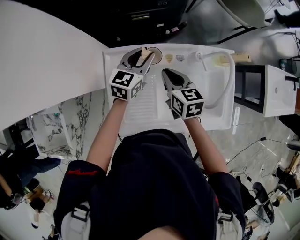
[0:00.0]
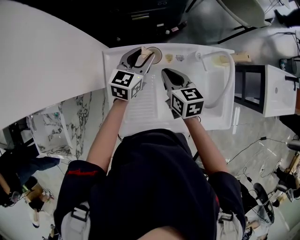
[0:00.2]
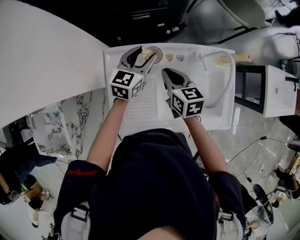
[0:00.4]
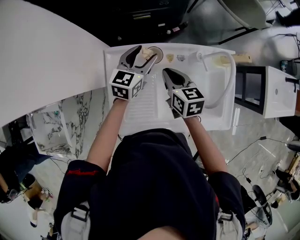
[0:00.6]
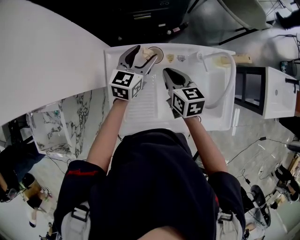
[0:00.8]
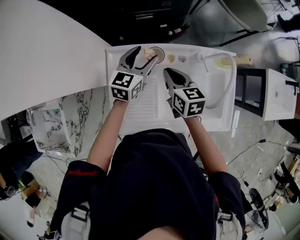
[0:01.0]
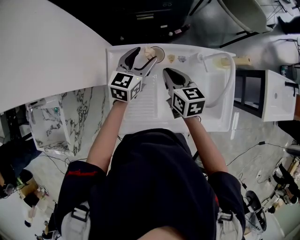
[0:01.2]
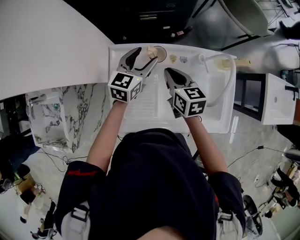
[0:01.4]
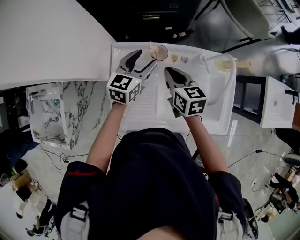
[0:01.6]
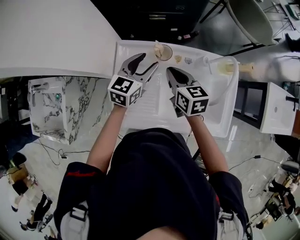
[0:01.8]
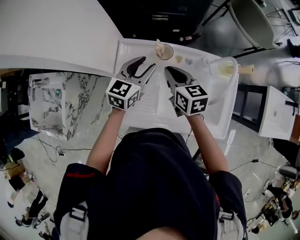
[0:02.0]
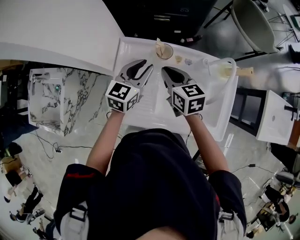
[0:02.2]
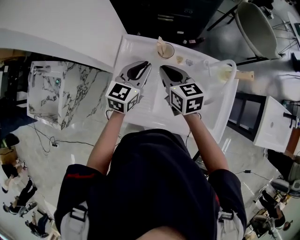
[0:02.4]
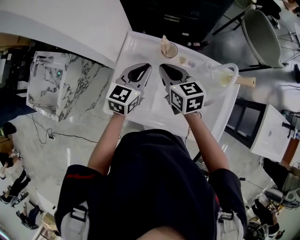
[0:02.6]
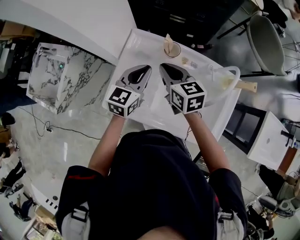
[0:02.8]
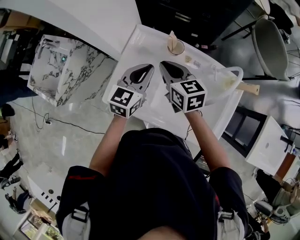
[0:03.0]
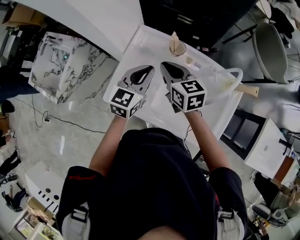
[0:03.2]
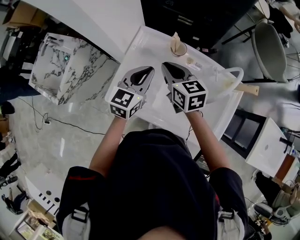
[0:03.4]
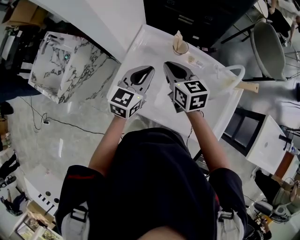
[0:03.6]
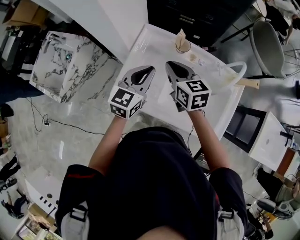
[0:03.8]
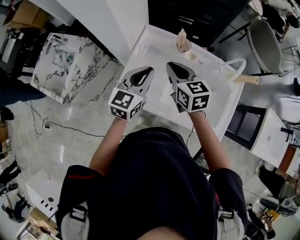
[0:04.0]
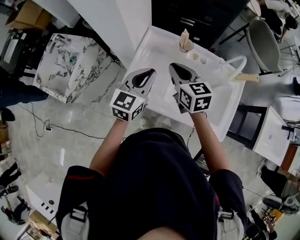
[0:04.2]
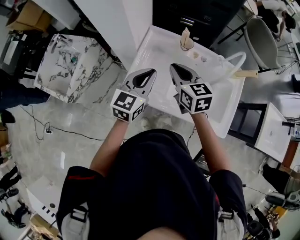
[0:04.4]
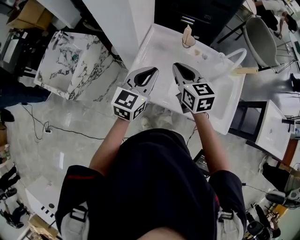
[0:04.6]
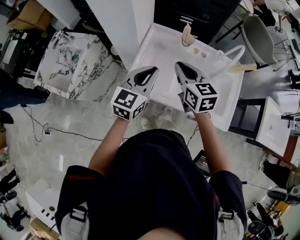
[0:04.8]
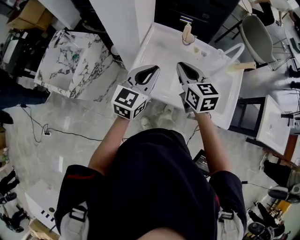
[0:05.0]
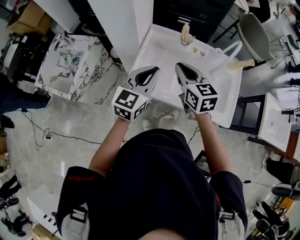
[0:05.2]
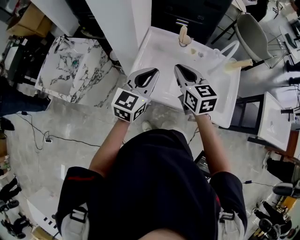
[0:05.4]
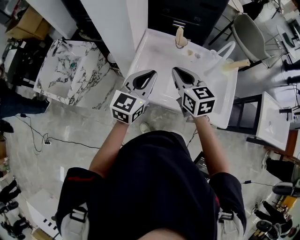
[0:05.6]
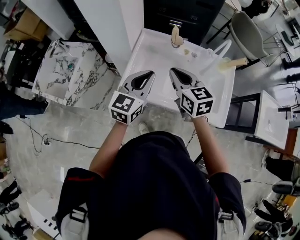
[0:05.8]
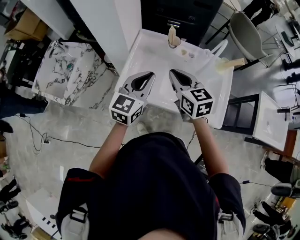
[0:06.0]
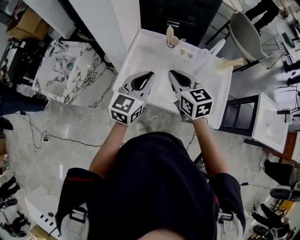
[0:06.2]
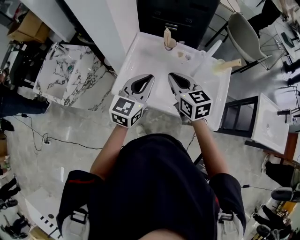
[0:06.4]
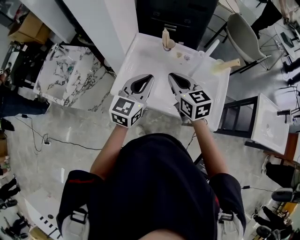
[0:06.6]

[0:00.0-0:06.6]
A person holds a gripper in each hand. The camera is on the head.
0.0 to 1.6 s: The left gripper changes place by roughly 5 cm, and opens its fingers.
1.6 to 3.2 s: The right gripper goes roughly 5 cm to the left, and turns by about 30 degrees, while the left gripper goes approximately 10 cm backward, rotates approximately 20 degrees, and closes.
3.2 to 5.0 s: The right gripper is displaced backward and upward by about 15 cm, while the left gripper moves backward, to the left and upward, about 20 cm.
5.0 to 6.6 s: The two grippers go roughly 5 cm to the right.

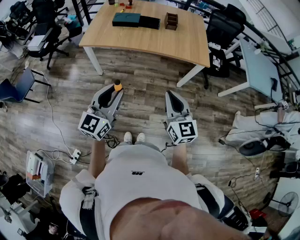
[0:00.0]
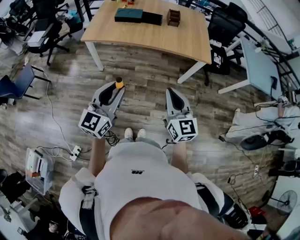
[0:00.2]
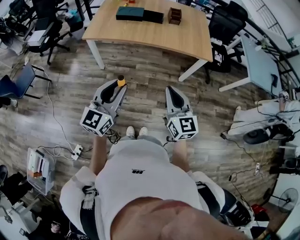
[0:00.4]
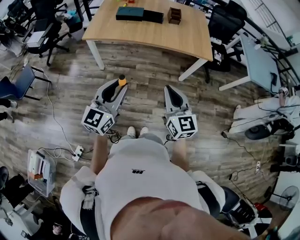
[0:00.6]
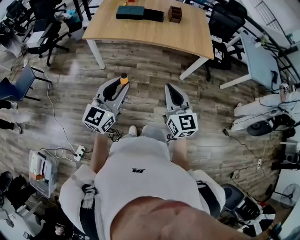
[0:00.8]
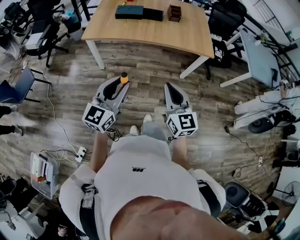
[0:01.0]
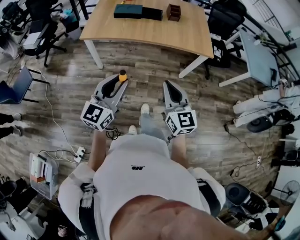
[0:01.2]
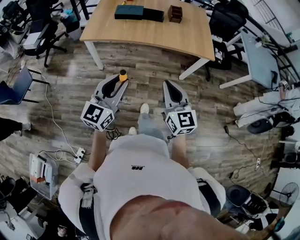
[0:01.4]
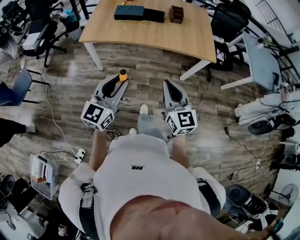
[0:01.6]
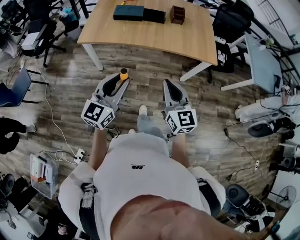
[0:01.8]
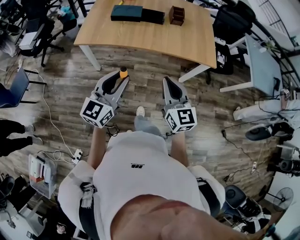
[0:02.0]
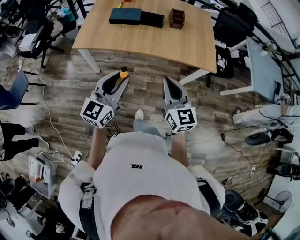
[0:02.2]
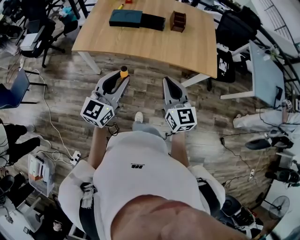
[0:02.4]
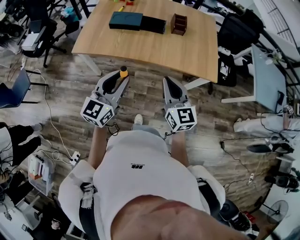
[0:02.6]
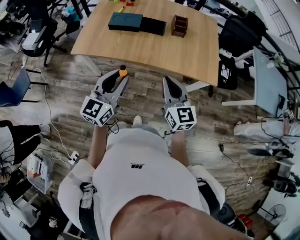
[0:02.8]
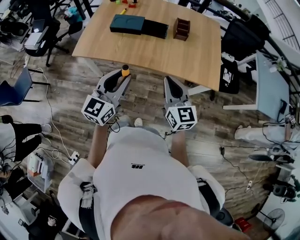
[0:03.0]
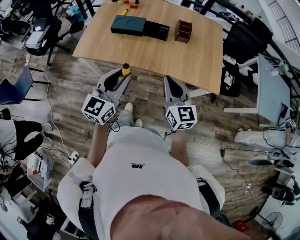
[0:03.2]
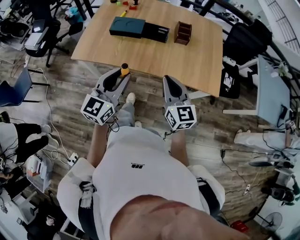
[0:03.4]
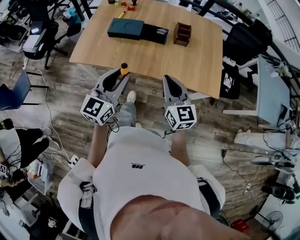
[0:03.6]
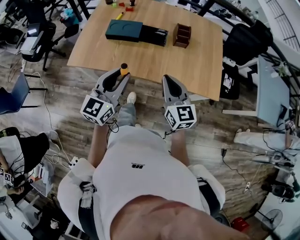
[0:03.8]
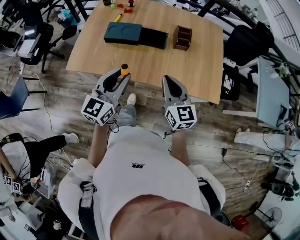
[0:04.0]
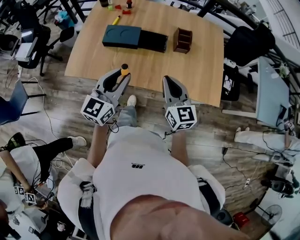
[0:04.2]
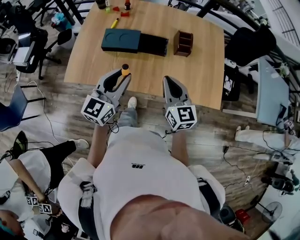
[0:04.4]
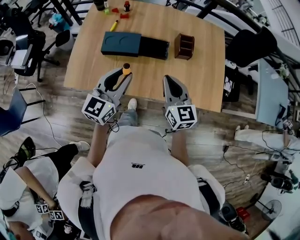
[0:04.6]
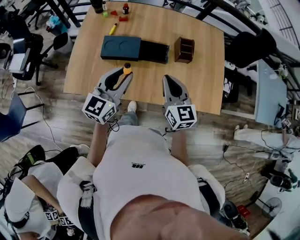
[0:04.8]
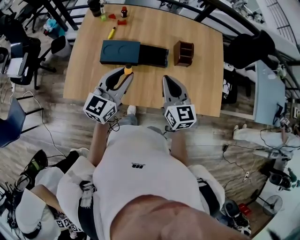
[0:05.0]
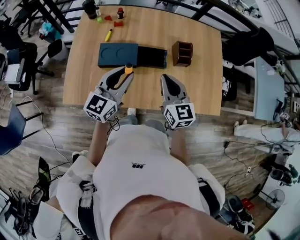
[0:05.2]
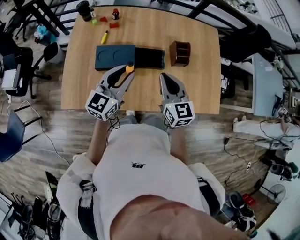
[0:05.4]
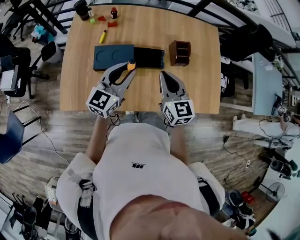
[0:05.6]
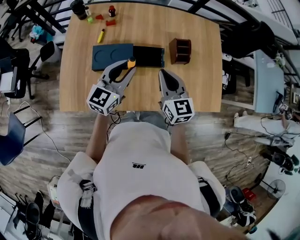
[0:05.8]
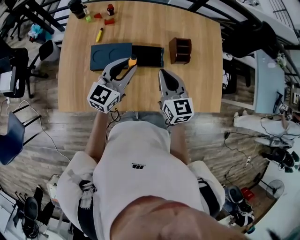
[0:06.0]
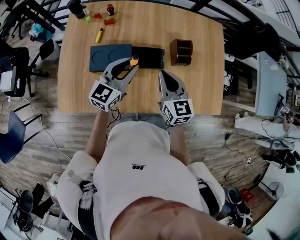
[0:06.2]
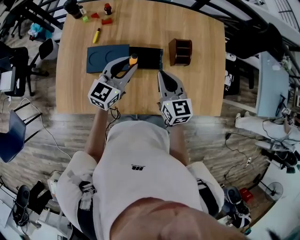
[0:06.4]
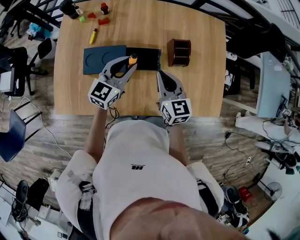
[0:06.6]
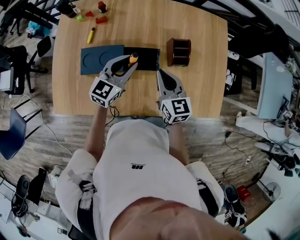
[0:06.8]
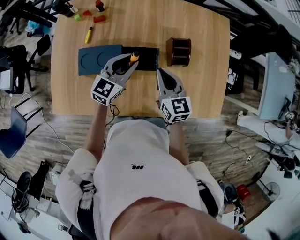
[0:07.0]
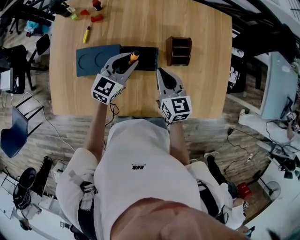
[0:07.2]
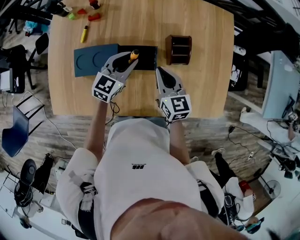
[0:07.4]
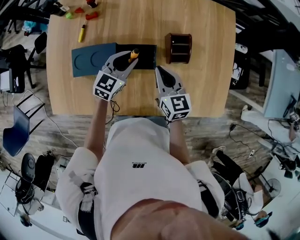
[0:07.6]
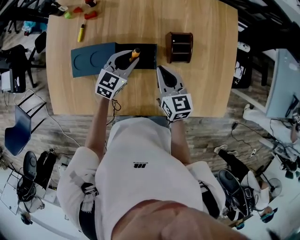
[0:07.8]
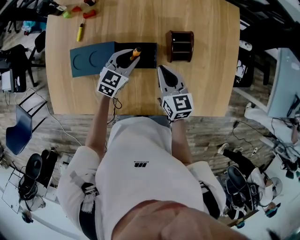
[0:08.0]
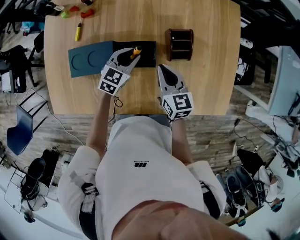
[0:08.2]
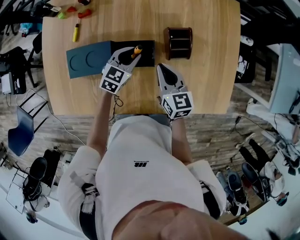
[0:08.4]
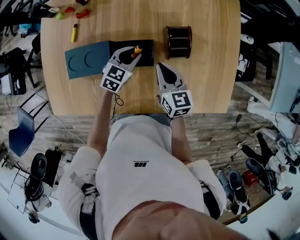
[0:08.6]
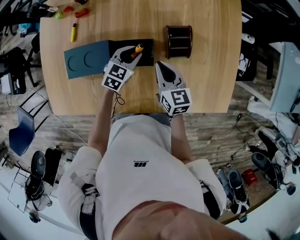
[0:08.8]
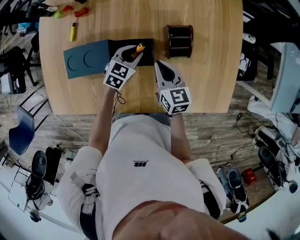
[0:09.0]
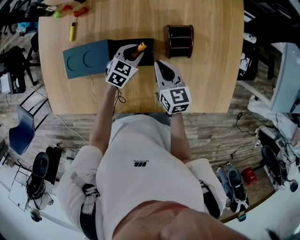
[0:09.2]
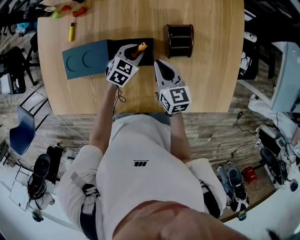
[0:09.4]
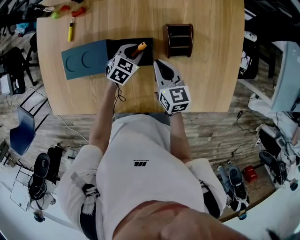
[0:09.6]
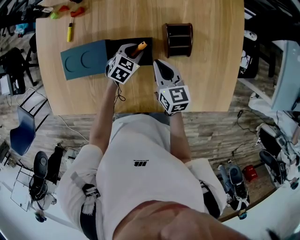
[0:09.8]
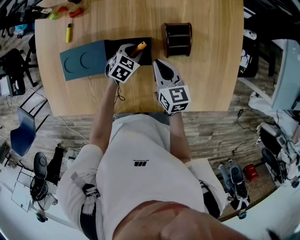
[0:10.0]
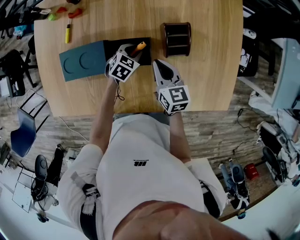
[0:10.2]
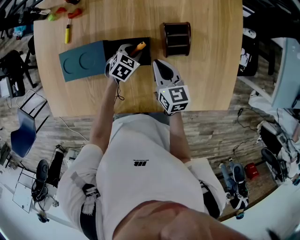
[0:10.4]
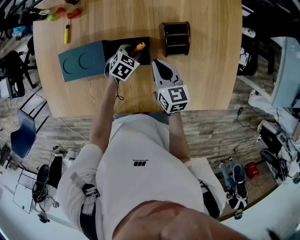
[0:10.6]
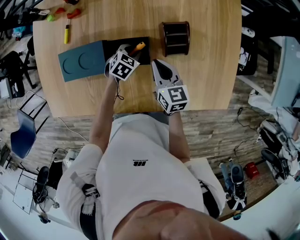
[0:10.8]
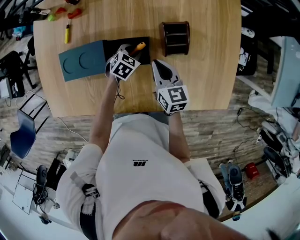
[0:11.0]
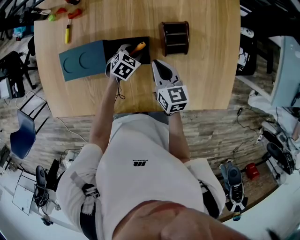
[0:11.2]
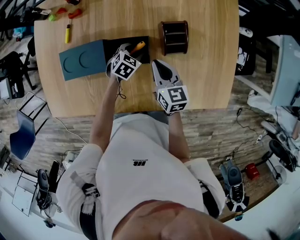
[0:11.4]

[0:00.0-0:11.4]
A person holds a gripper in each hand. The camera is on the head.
0.0 to 1.4 s: Both grippers move to the left, about 10 cm.
1.4 to 2.8 s: The two grippers go approximately 25 cm forward.
2.8 to 4.2 s: The grippers both shift forward by about 20 cm.
4.2 to 5.6 s: The left gripper goes roughly 25 cm forward. The right gripper moves forward and to the left, some 20 cm.
5.6 to 7.2 s: Both grippers move forward, downward and to the right, some 20 cm.
7.2 to 8.6 s: The right gripper travels downward by roughly 5 cm. Meanwhile the left gripper heads downward, covering roughly 15 cm.
8.6 to 10.0 s: The left gripper goes about 10 cm downward.
10.0 to 11.4 s: The grippers stay close to where they were, moving slightly.

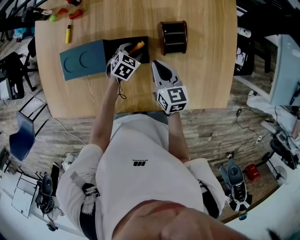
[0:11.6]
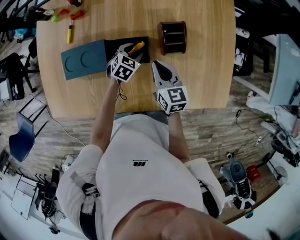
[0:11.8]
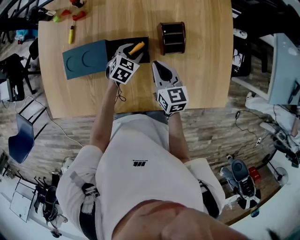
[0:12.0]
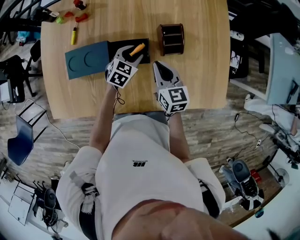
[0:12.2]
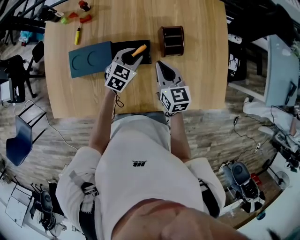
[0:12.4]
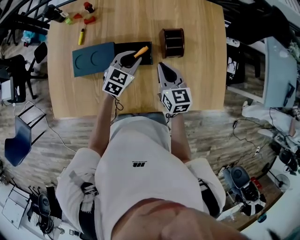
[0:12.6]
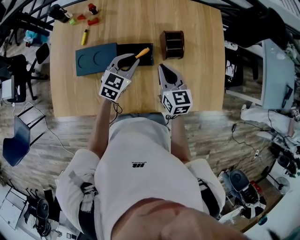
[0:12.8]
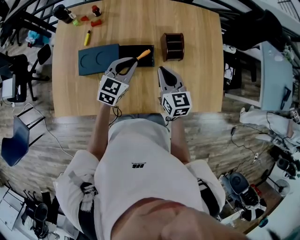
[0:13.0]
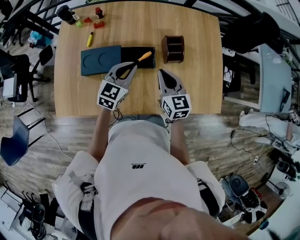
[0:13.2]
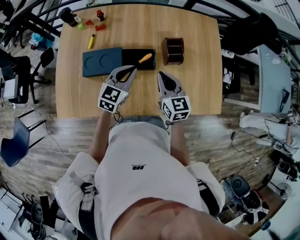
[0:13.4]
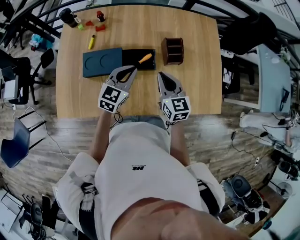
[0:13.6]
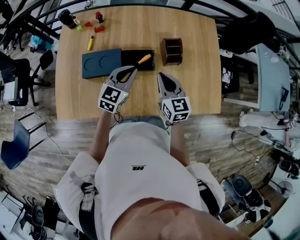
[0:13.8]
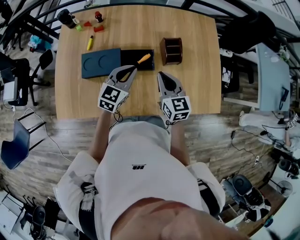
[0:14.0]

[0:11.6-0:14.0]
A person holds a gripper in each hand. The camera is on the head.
11.6 to 12.8 s: The left gripper travels upward by about 20 cm, turns by roughly 30 degrees, and closes its fingers. Meanwhile the right gripper moves upward, some 10 cm.
12.8 to 14.0 s: The left gripper is displaced upward and backward by about 5 cm, while the right gripper changes place by some 5 cm.

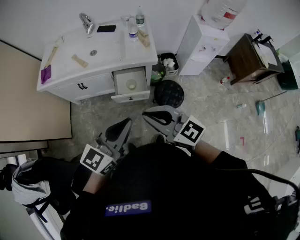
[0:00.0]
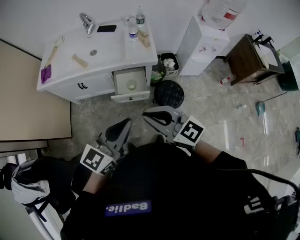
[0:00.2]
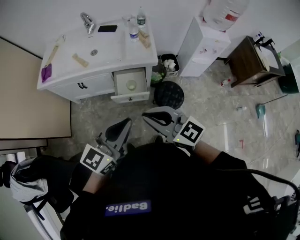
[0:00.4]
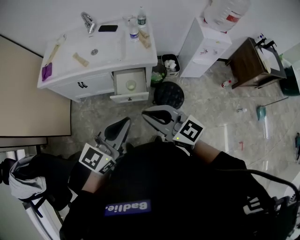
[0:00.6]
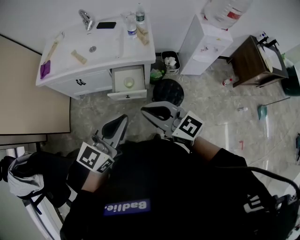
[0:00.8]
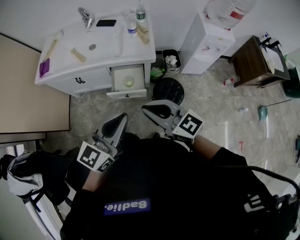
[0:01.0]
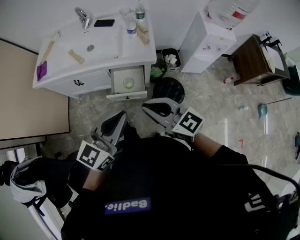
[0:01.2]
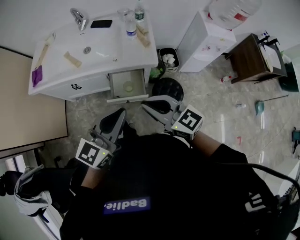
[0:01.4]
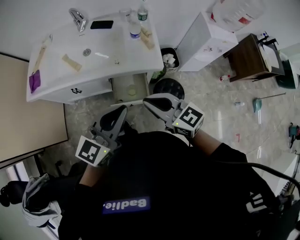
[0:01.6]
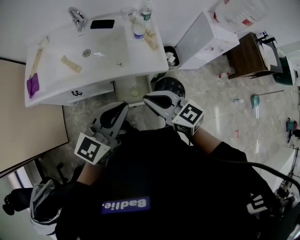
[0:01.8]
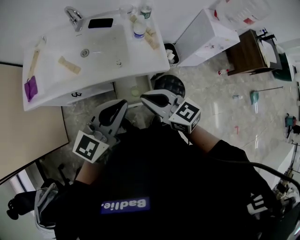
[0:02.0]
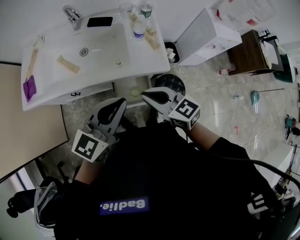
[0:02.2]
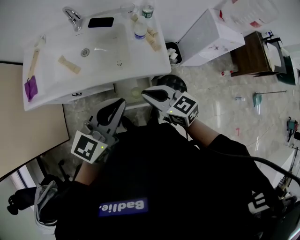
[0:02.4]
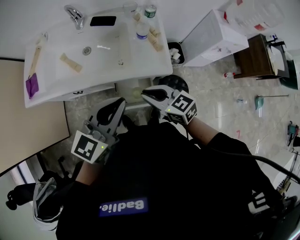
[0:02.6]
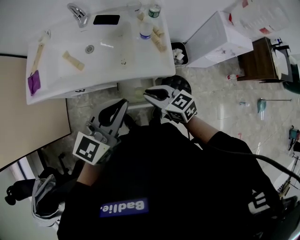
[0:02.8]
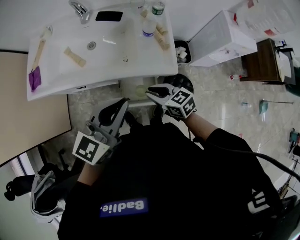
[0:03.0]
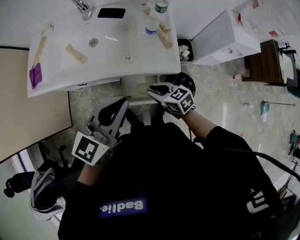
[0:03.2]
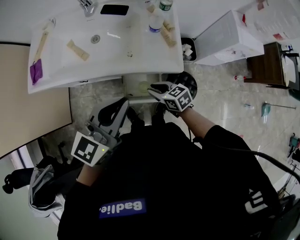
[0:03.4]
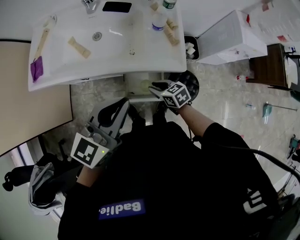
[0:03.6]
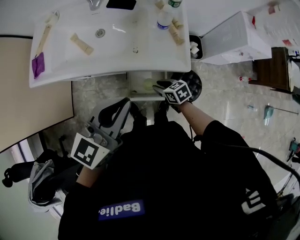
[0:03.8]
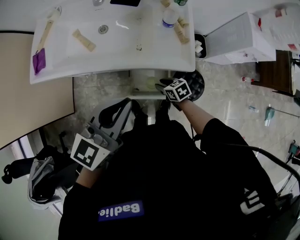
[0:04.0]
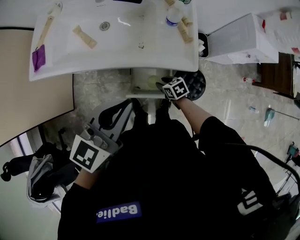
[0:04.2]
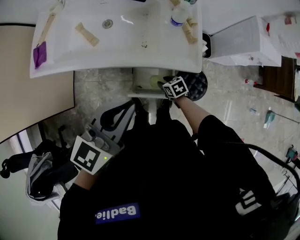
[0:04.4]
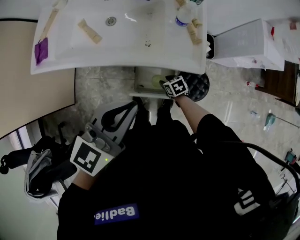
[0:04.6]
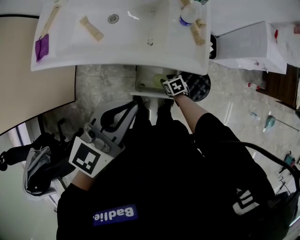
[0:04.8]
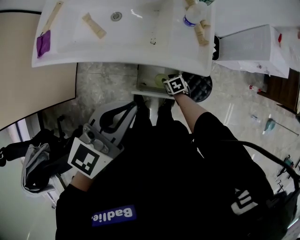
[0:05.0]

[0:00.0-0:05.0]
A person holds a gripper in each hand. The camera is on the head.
0.0 to 1.6 s: Both grippers travel together forward, some 20 cm.
1.6 to 3.4 s: The left gripper shifts roughly 10 cm forward, while the right gripper travels downward and forward by approximately 25 cm, swivels some 30 degrees, and opens.
3.4 to 5.0 s: The right gripper travels downward by about 25 cm, and rotates roughly 30 degrees.
